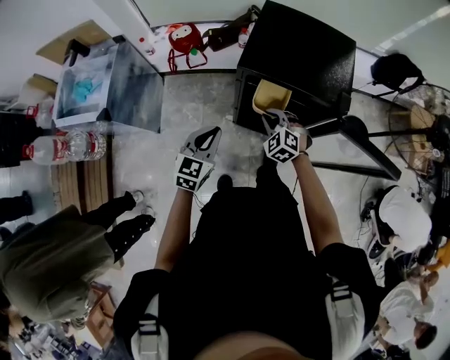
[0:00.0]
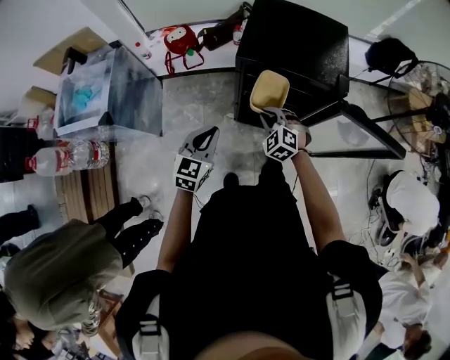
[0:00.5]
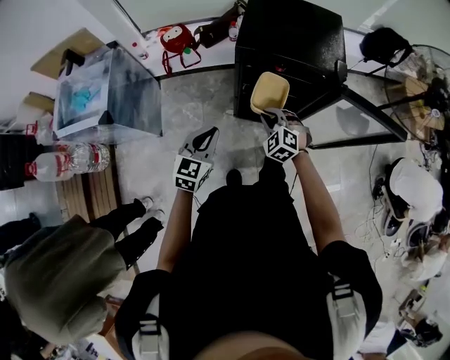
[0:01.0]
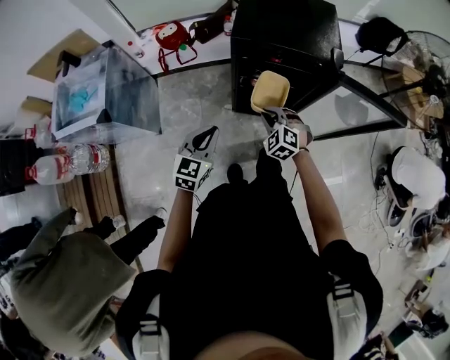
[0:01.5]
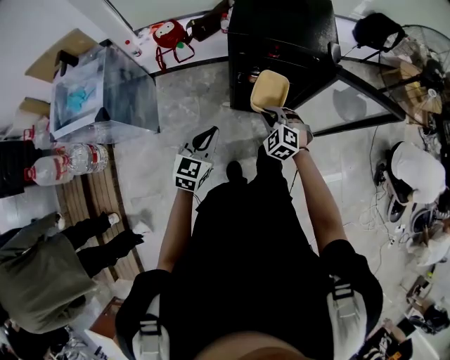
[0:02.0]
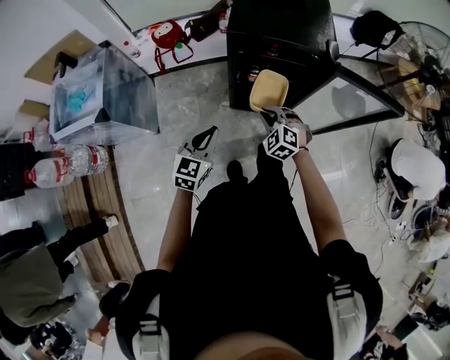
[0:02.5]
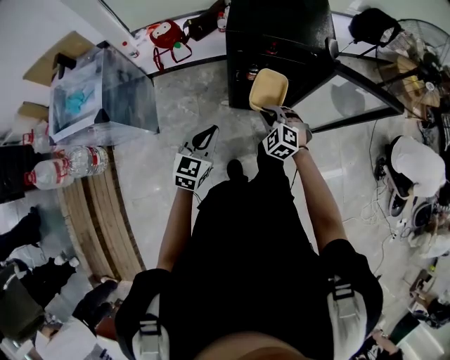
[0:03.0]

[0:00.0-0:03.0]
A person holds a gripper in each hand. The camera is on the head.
0:00.0 to 0:01.5: Both grippers travel together backward, roughly 10 cm.
0:01.5 to 0:03.0: The grippers stay close to where they were, moving slightly.

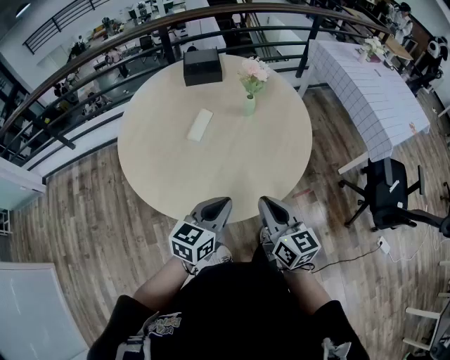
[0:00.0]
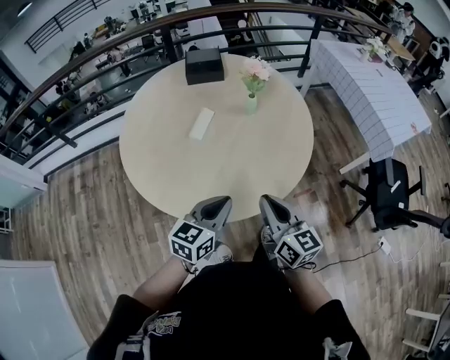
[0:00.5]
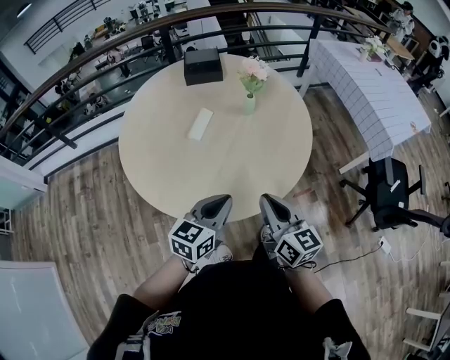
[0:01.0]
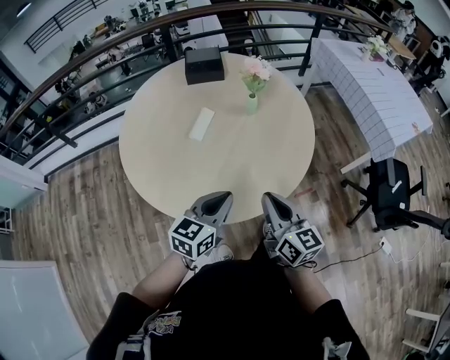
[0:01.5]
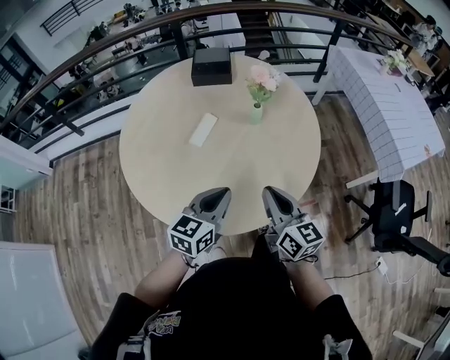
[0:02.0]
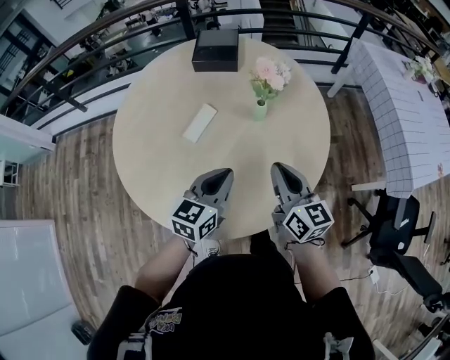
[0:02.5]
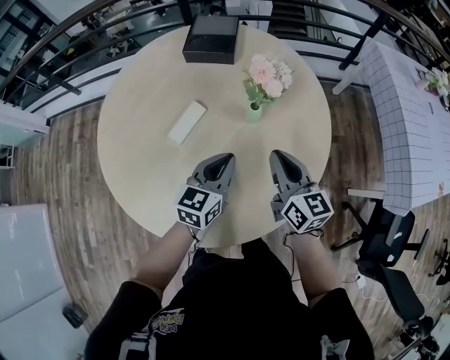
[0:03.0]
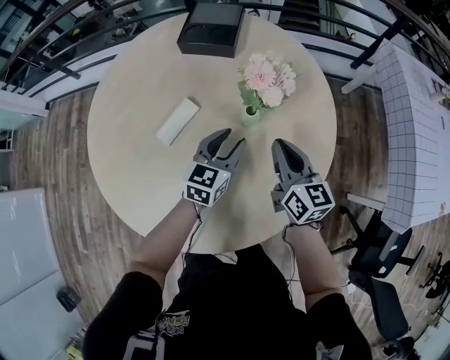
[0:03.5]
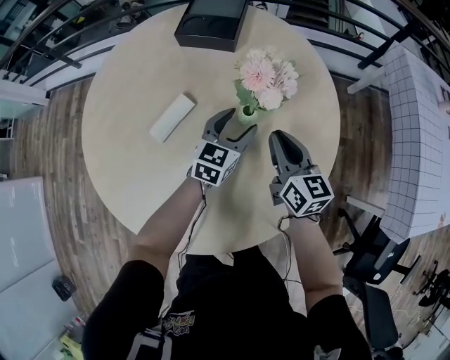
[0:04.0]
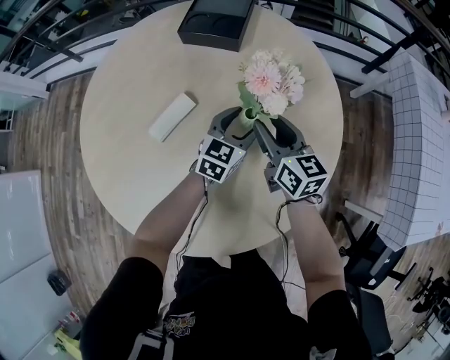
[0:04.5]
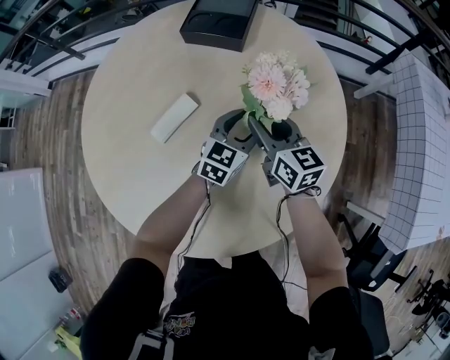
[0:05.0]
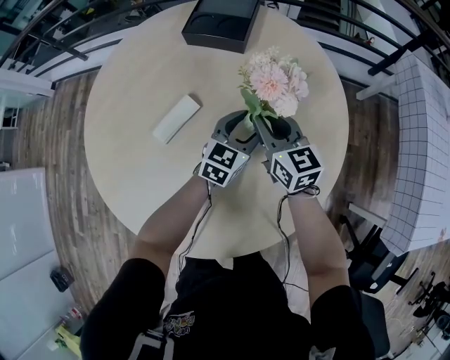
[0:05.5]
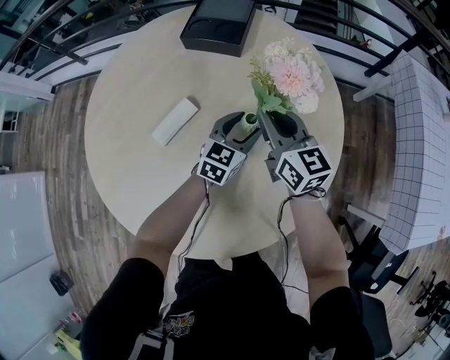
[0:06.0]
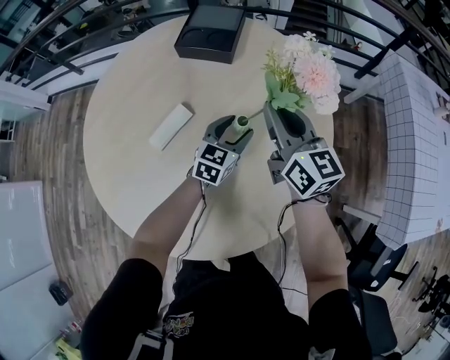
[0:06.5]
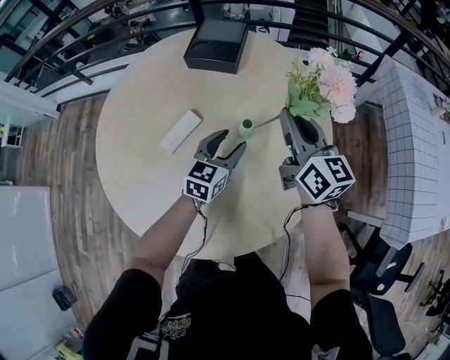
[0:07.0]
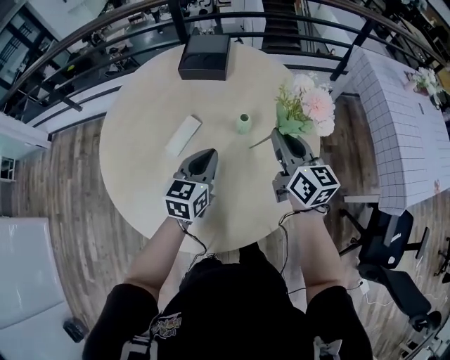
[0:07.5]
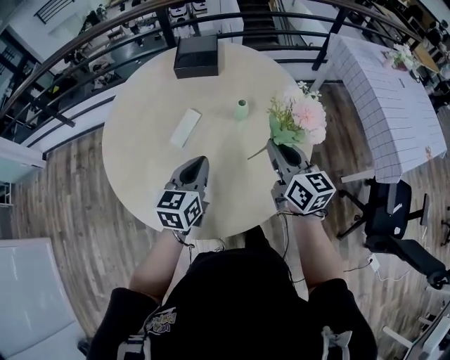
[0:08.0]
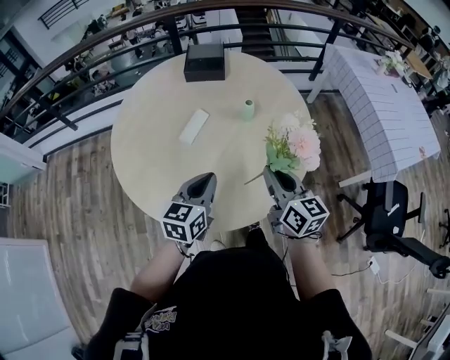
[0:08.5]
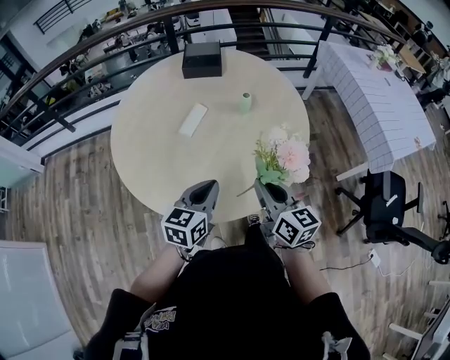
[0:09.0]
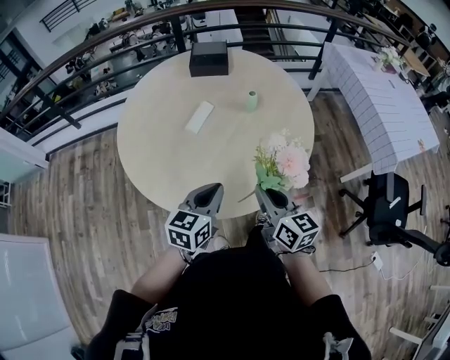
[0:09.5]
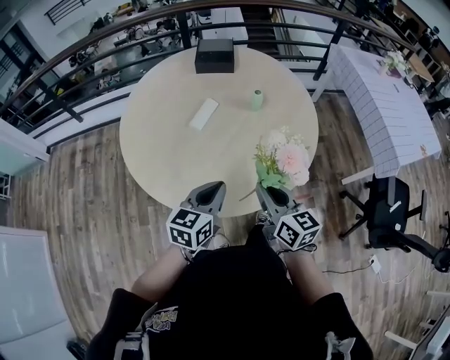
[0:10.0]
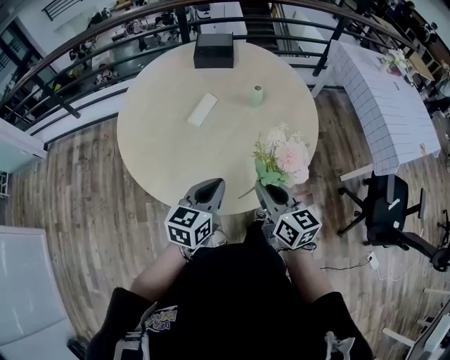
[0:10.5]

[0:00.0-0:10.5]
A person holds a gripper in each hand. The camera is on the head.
0:00.0 to 0:02.0: The grippers both shift forward by about 10 cm.
0:02.0 to 0:04.0: Both grippers travel together forward and downward, some 35 cm. The left gripper opens its fingers.
0:04.0 to 0:06.5: The right gripper moves upward and forward, some 15 cm, and opens, then closes once more.
0:06.5 to 0:08.5: The right gripper is displaced backward by approximately 30 cm, while the left gripper moves backward, upward and to the left, some 40 cm, and closes its fingers.
0:08.5 to 0:10.5: The left gripper heads backward, covering roughly 10 cm. Meanwhile the right gripper heads backward and to the left, covering about 10 cm.

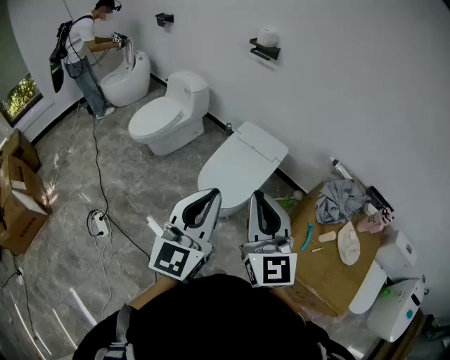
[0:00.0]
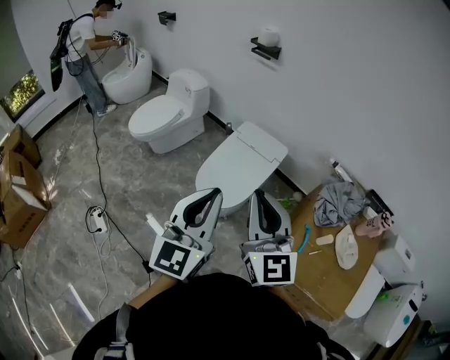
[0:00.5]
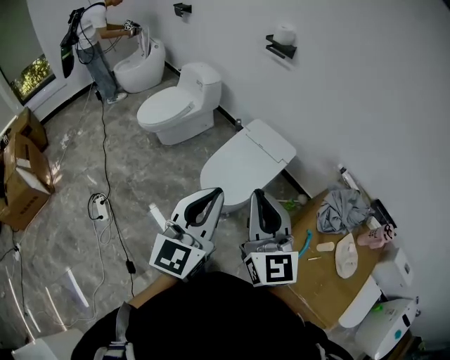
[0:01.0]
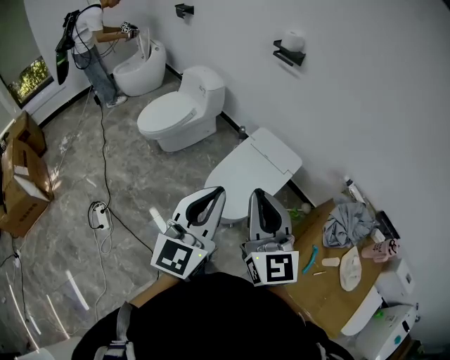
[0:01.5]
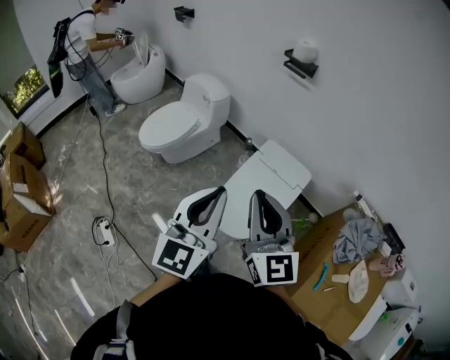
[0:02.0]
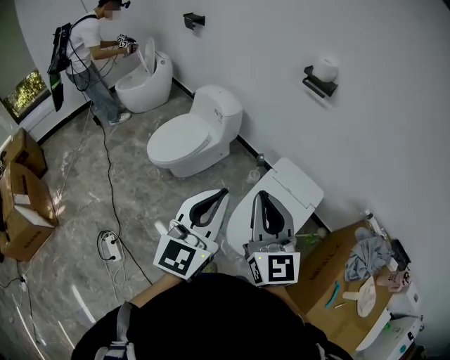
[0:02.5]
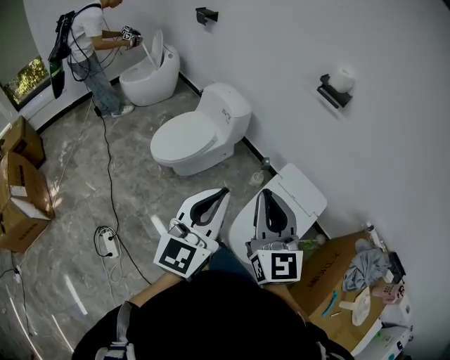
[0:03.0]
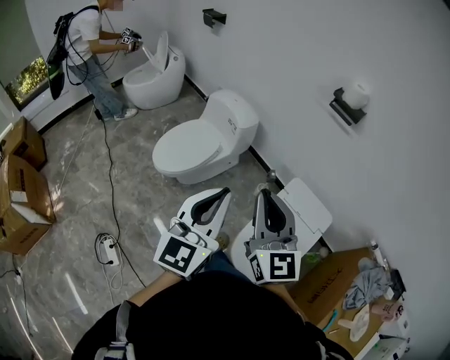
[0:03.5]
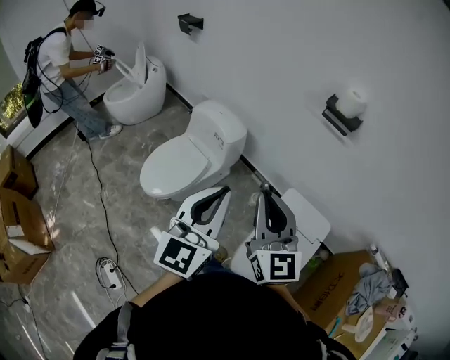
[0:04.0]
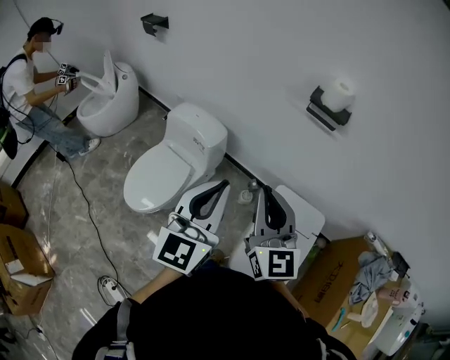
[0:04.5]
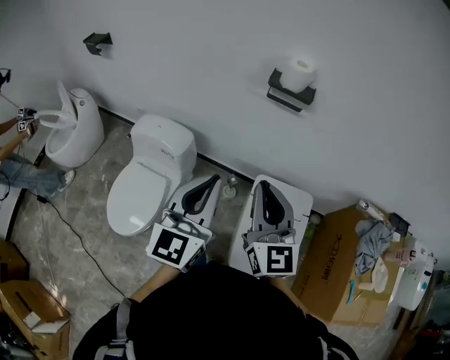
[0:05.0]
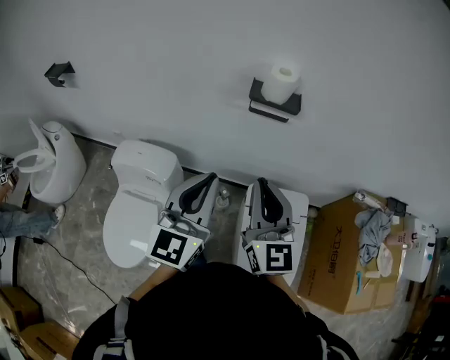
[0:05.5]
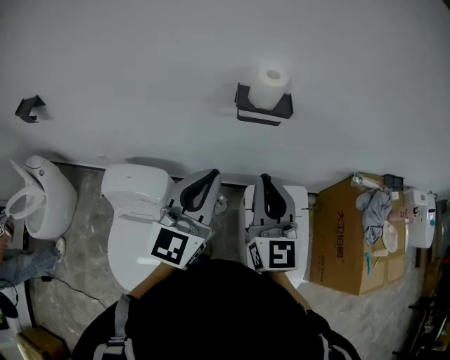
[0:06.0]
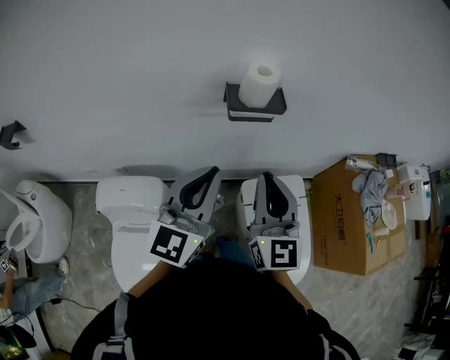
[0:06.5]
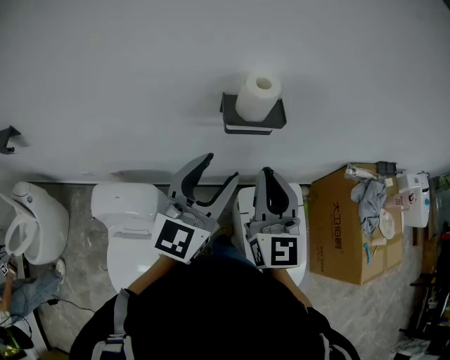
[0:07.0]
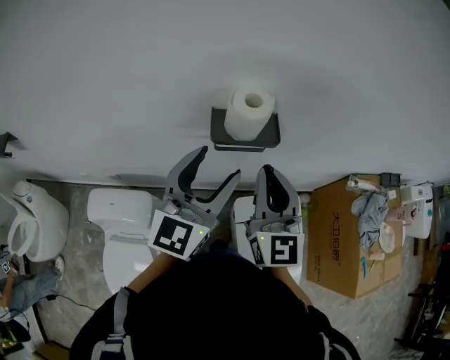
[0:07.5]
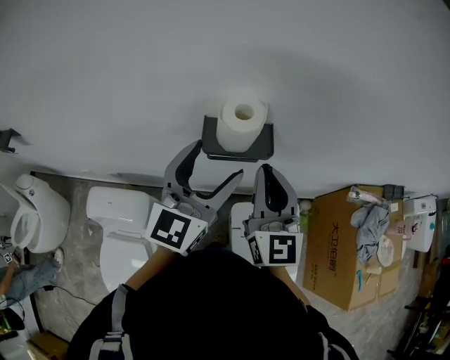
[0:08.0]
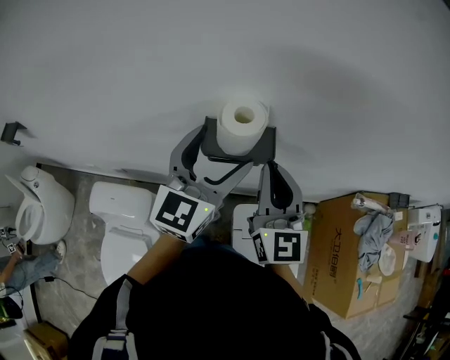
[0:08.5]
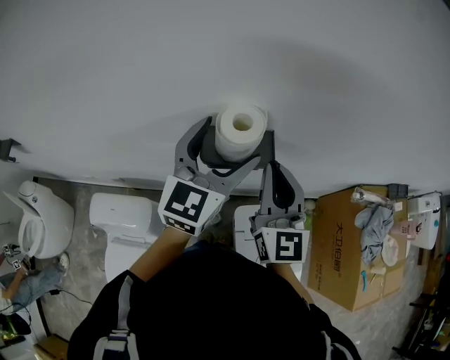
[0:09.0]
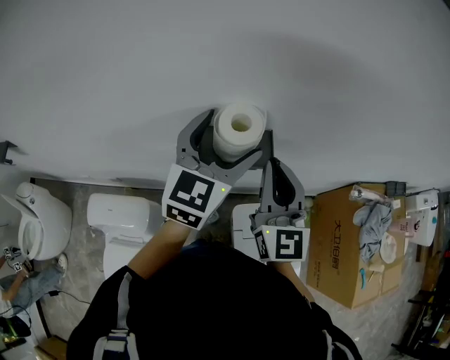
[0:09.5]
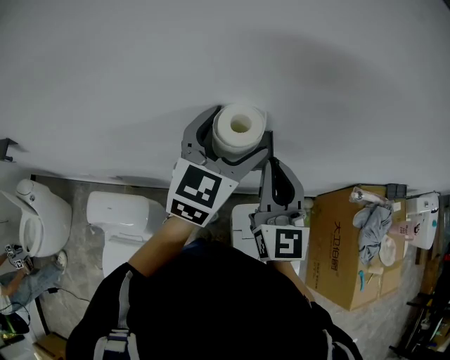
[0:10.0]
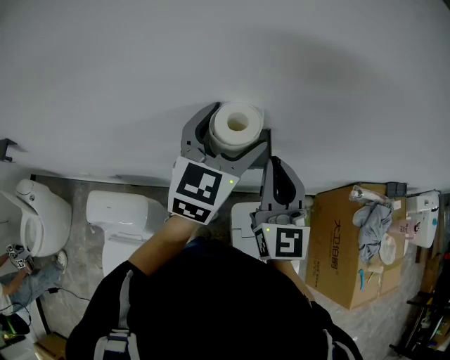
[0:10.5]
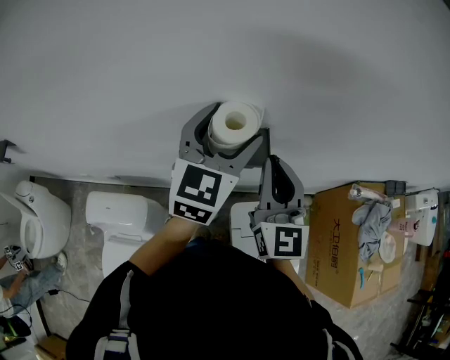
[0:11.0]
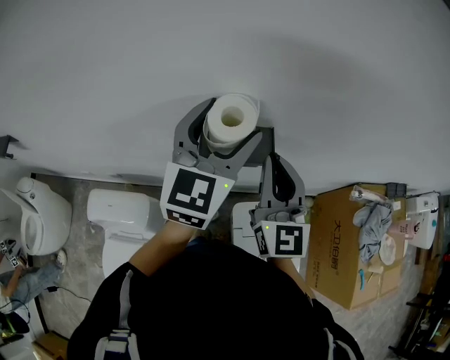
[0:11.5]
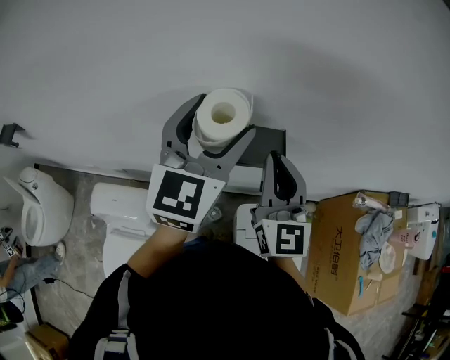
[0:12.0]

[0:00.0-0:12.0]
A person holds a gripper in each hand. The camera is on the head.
0:00.0 to 0:02.0: Both grippers move forward and to the left, roughly 20 cm.
0:02.0 to 0:04.0: The two grippers go some 40 cm forward and to the left.
0:04.0 to 0:06.0: The right gripper moves roughly 30 cm, and turns by roughly 40 degrees; the left gripper moves approximately 35 cm, and turns by roughly 40 degrees.
0:06.0 to 0:08.0: The grippers both shift forward by roughly 20 cm. The left gripper opens.
0:08.0 to 0:10.0: The left gripper heads forward, covering approximately 10 cm.
0:10.0 to 0:12.0: The left gripper travels to the left and upward by about 10 cm.

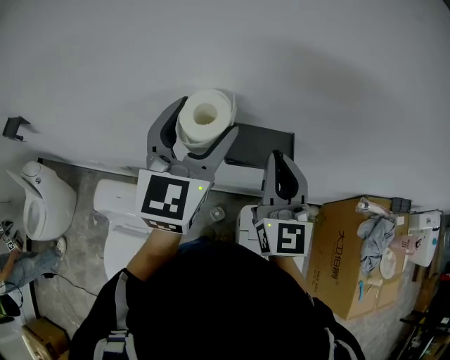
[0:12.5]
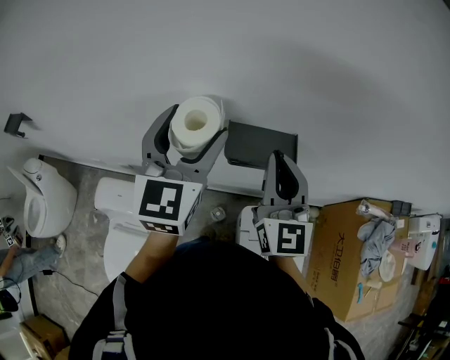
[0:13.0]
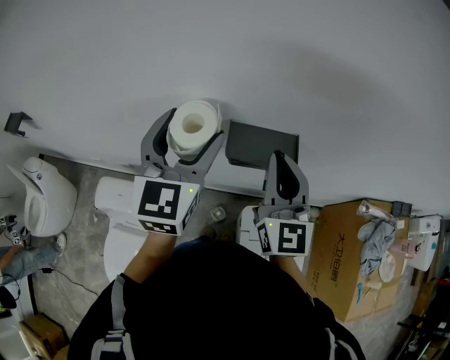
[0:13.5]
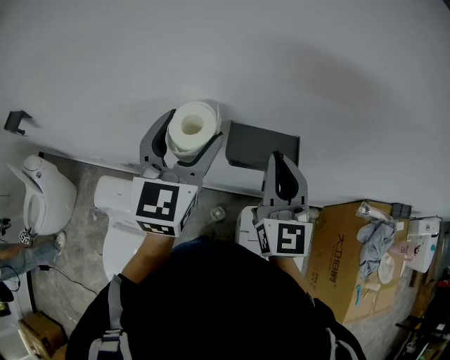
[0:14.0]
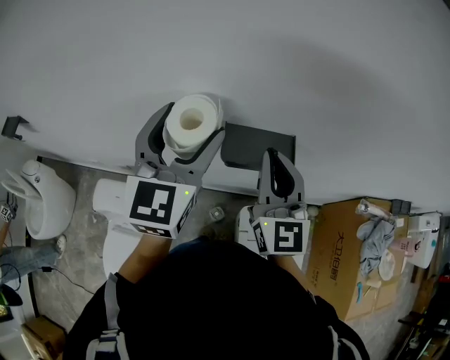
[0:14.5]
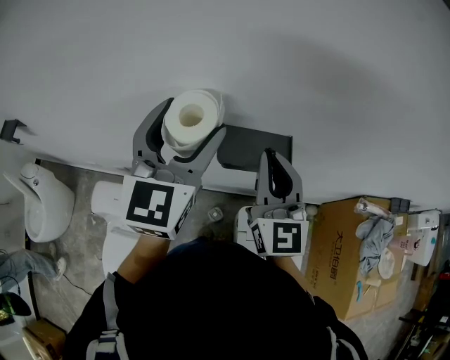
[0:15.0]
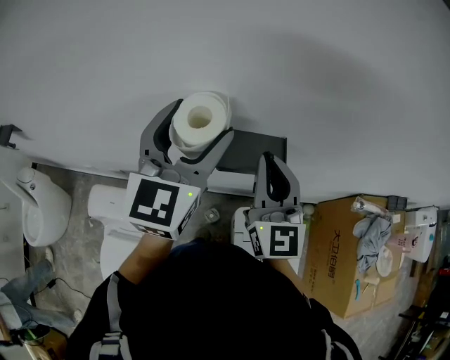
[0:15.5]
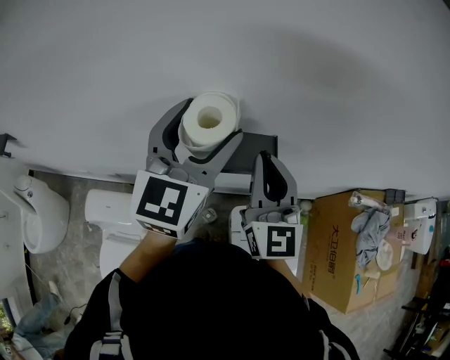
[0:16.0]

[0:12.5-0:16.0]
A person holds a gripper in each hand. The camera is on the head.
0:12.5 to 0:14.5: The grippers move only a little.
0:14.5 to 0:16.0: The left gripper travels to the right by some 5 cm.
